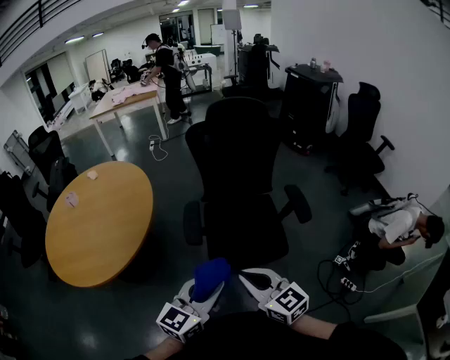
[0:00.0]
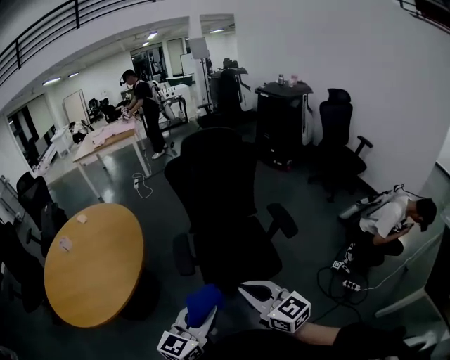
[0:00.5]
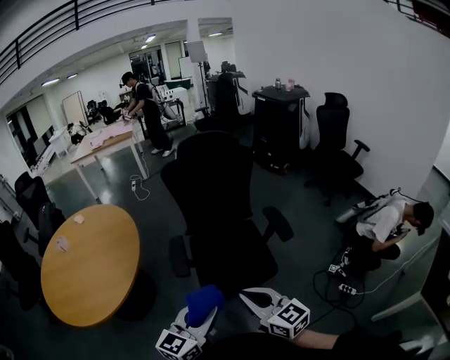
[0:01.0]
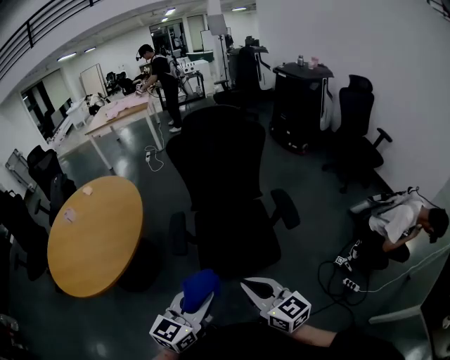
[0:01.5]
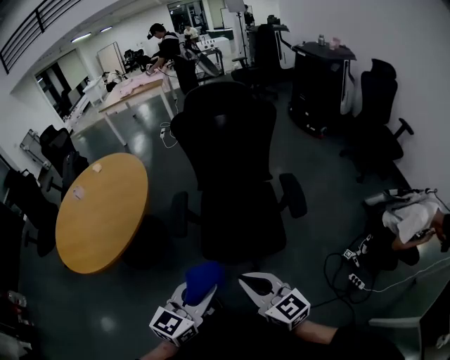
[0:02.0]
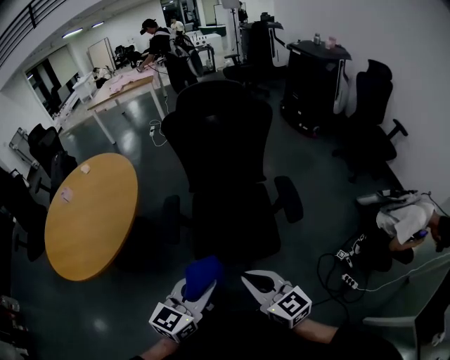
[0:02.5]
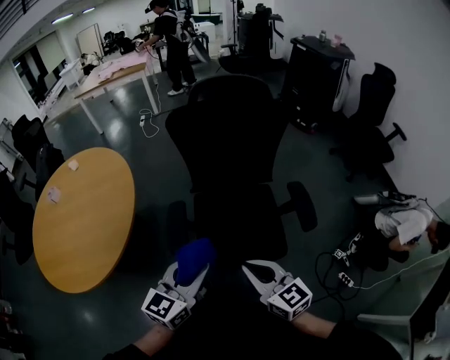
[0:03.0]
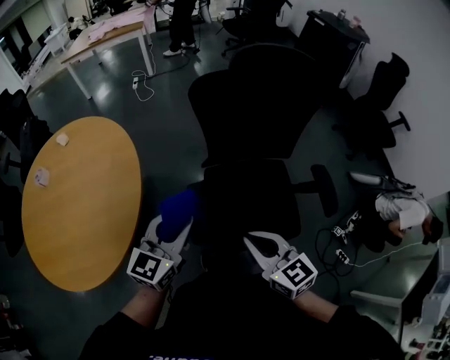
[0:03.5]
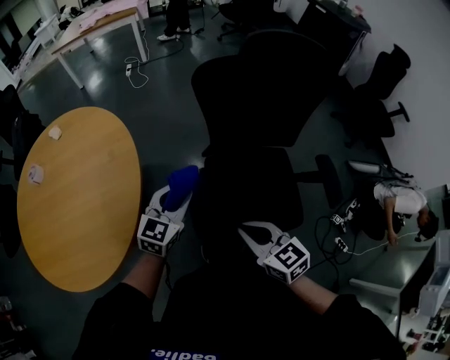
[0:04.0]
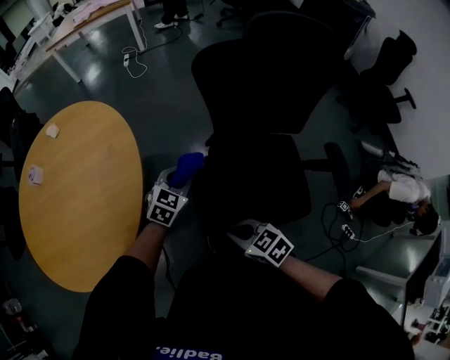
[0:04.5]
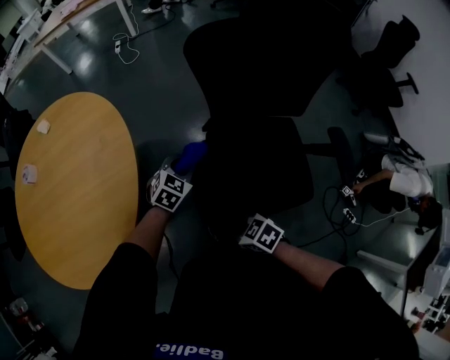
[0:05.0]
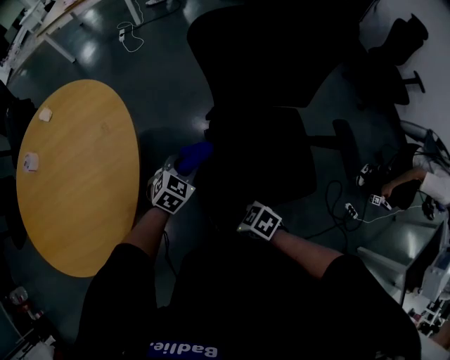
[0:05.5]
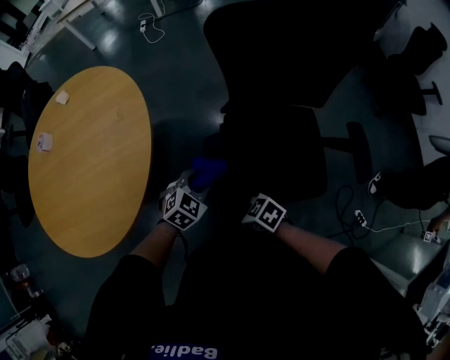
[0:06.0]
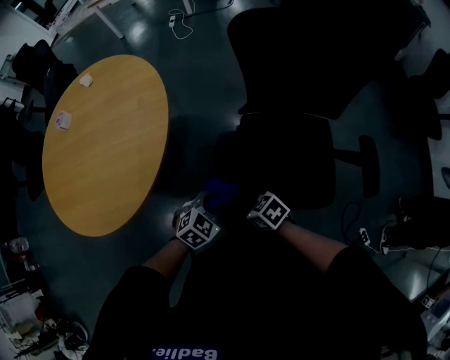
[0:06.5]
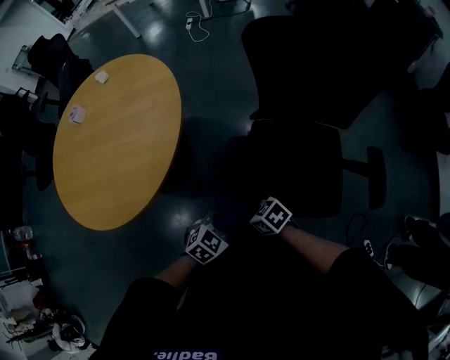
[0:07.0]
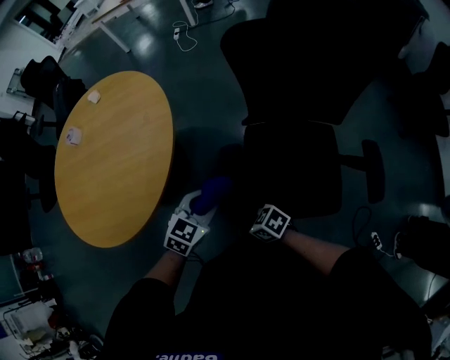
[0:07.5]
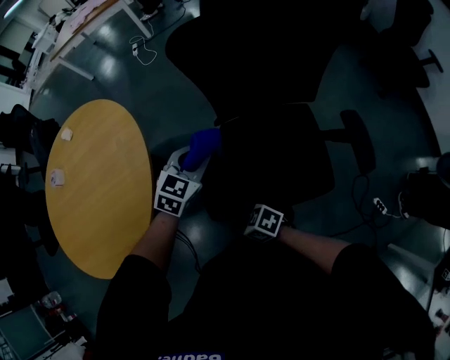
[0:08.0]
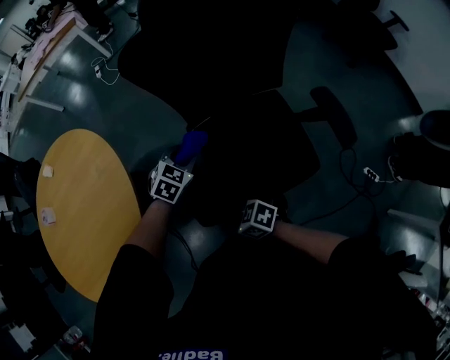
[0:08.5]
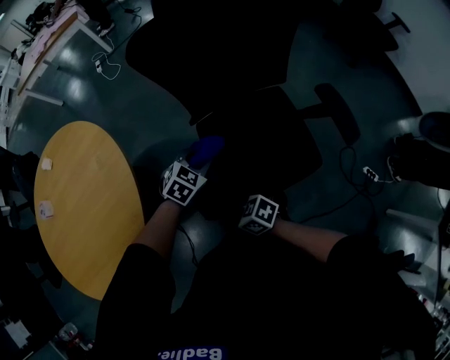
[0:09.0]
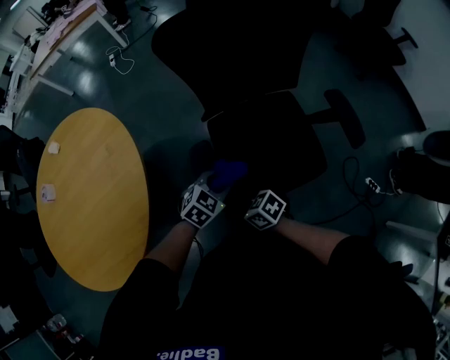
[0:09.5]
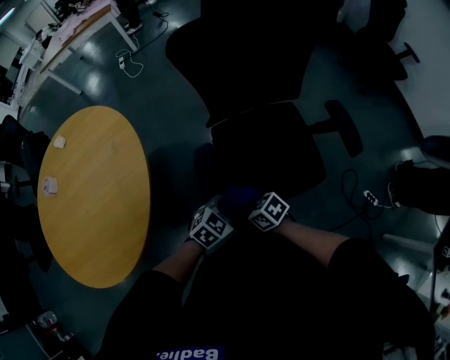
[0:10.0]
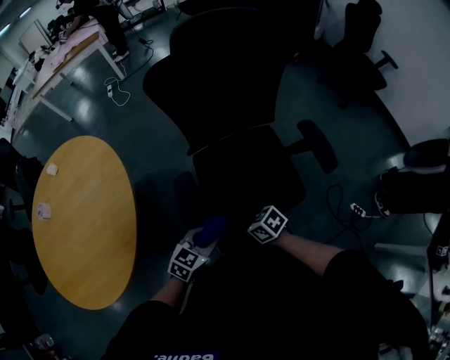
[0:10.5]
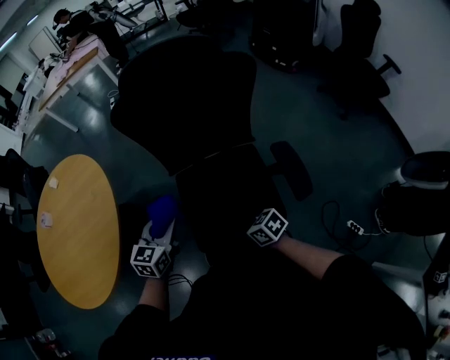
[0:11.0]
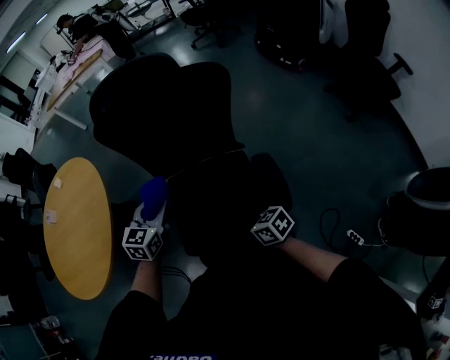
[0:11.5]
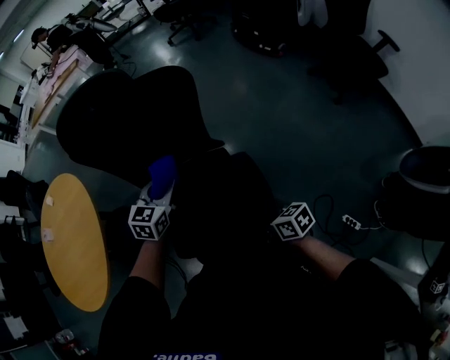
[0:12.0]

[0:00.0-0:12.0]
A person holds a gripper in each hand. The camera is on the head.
0:00.0 to 0:02.0: Both grippers move to the right, some 10 cm.
0:02.0 to 0:04.0: Both grippers travel together forward and to the left, approximately 40 cm. The right gripper rotates some 20 degrees.
0:04.0 to 0:06.0: The two grippers go roughly 15 cm downward. The left gripper turns by some 30 degrees, while the right gripper swivels roughly 40 degrees.
0:06.0 to 0:08.0: The left gripper shifts by roughly 15 cm.
0:08.0 to 0:10.0: The left gripper moves roughly 25 cm, and changes its angle by some 30 degrees.
0:10.0 to 0:12.0: The right gripper changes place by about 50 cm, and changes its angle by approximately 20 degrees. The left gripper ends up approximately 40 cm from where it was, and changes its angle by about 40 degrees.

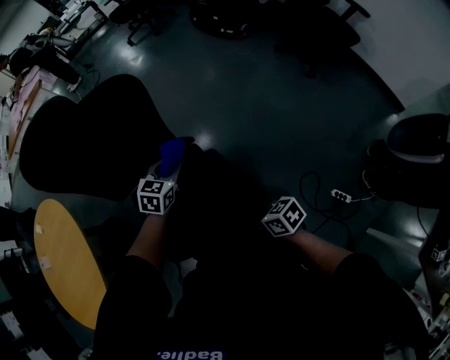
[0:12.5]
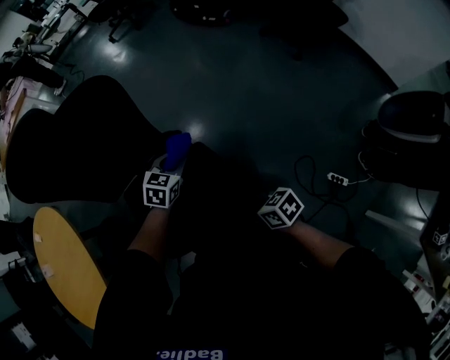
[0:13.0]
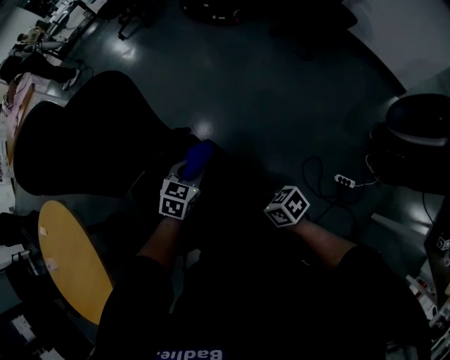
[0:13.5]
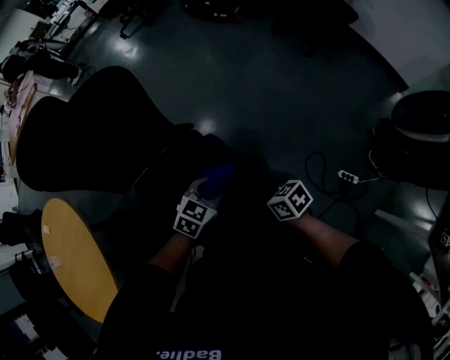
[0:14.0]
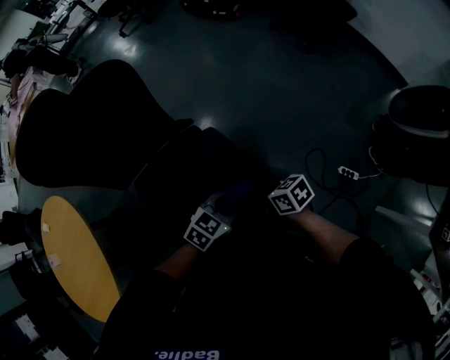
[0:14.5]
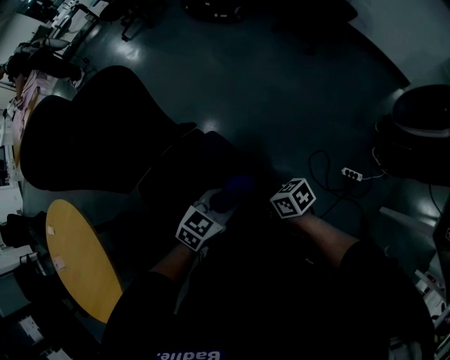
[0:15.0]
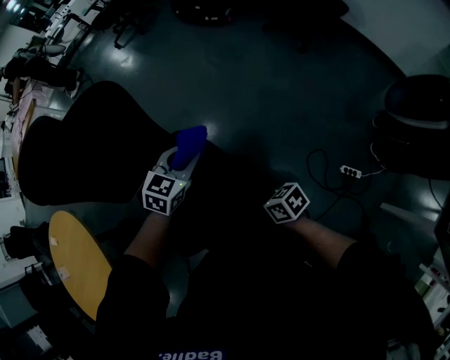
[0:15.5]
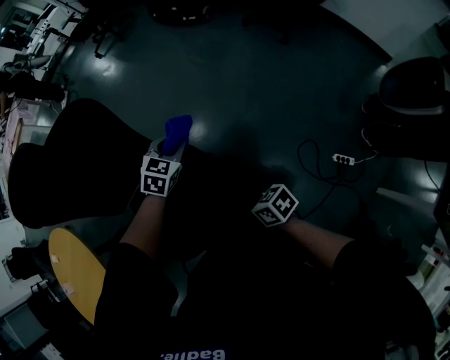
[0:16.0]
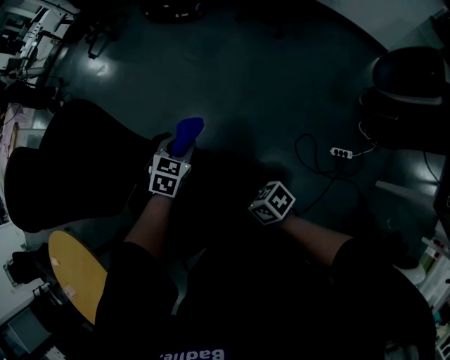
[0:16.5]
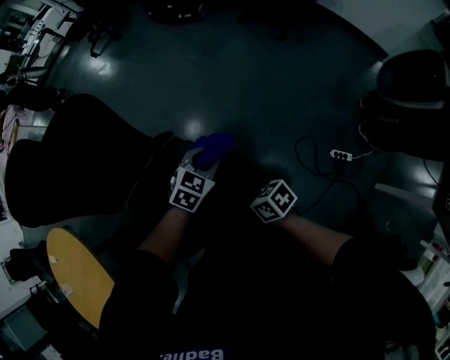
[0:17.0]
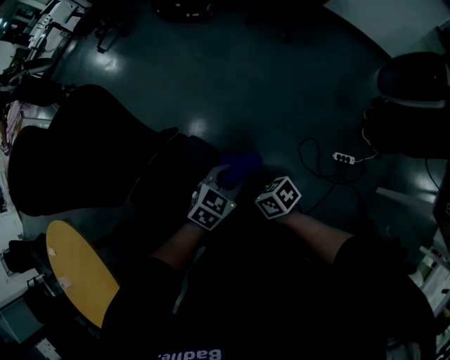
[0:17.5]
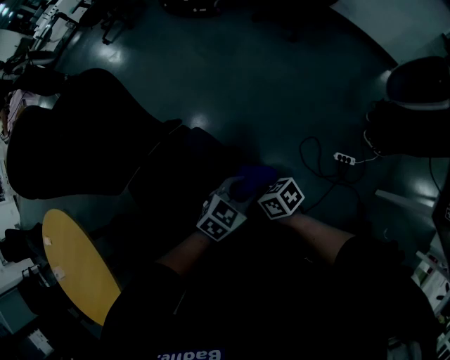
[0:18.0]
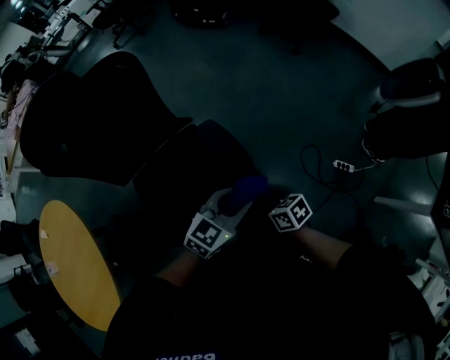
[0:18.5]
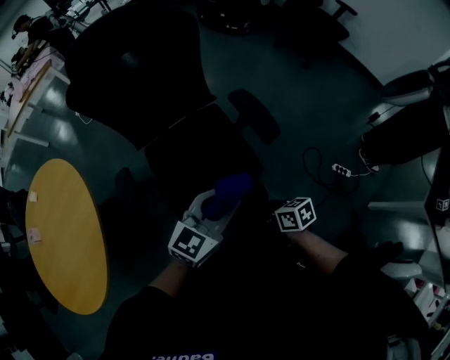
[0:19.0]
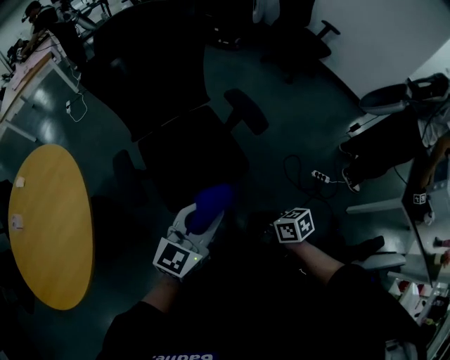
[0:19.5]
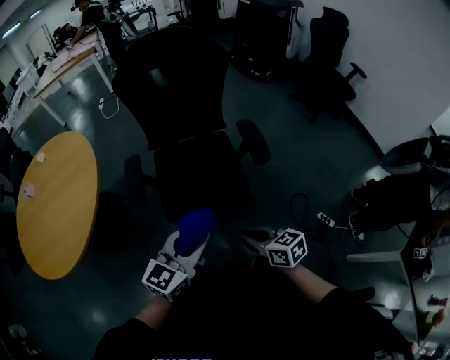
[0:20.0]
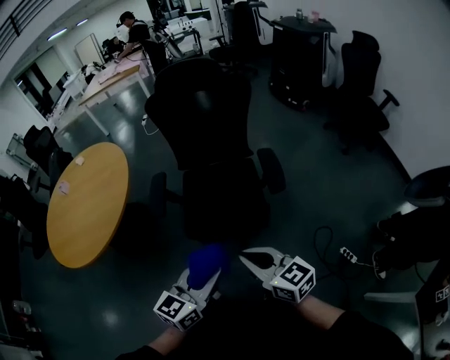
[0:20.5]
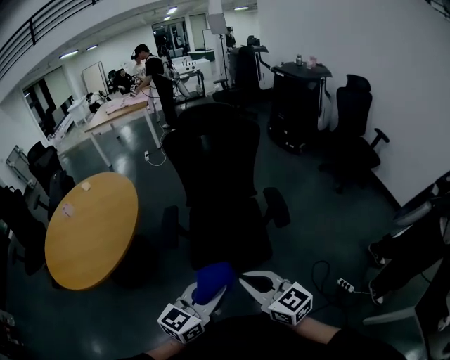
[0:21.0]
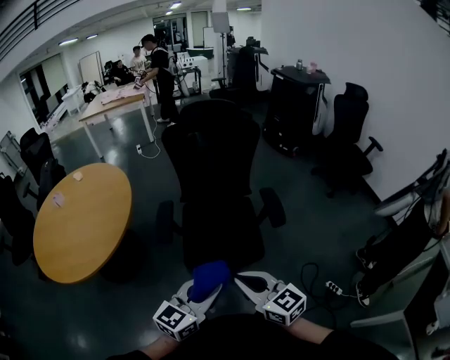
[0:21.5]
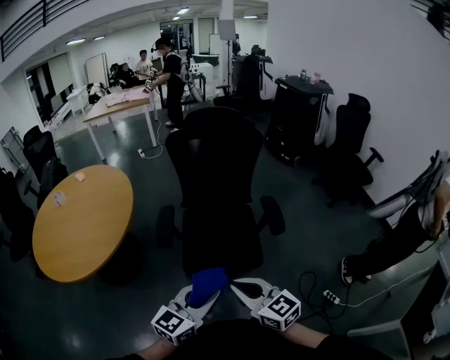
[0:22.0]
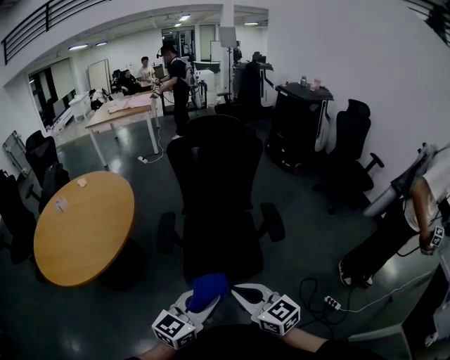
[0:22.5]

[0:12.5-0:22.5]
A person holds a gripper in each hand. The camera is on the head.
0:12.5 to 0:14.5: The left gripper shifts by some 30 cm, and turns by approximately 30 degrees.
0:14.5 to 0:16.5: The left gripper moves approximately 5 cm upward and comes back, and changes its angle by about 20 degrees.
0:16.5 to 0:18.5: The left gripper moves some 30 cm, and turns by approximately 30 degrees, while the right gripper moves roughly 10 cm.
0:18.5 to 0:20.5: The left gripper shifts by roughly 35 cm, and swivels approximately 50 degrees, while the right gripper travels upward by roughly 30 cm, and turns by about 50 degrees.
0:20.5 to 0:22.5: The grippers both shift to the left by roughly 5 cm.

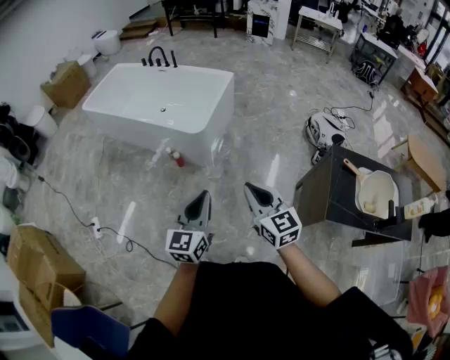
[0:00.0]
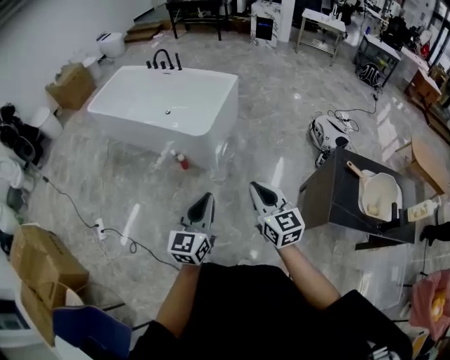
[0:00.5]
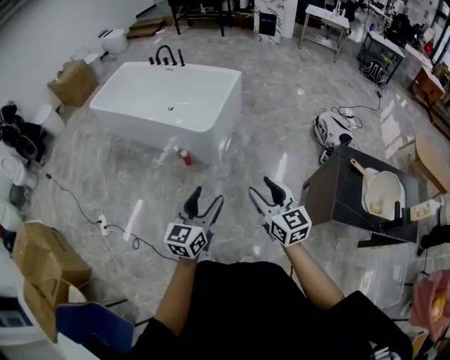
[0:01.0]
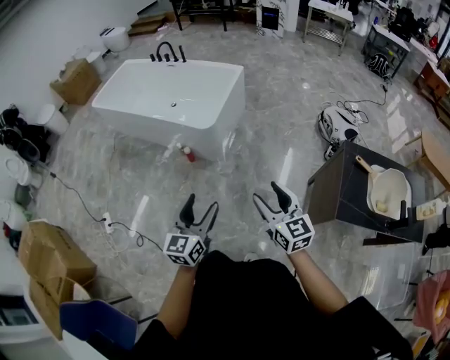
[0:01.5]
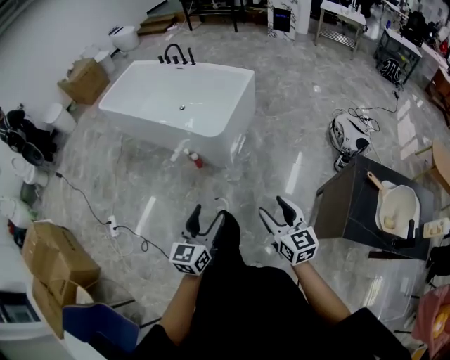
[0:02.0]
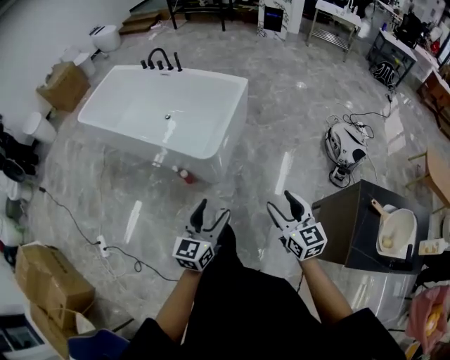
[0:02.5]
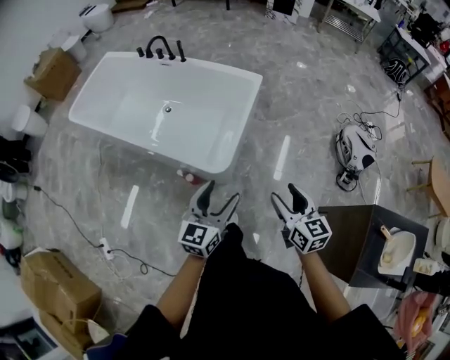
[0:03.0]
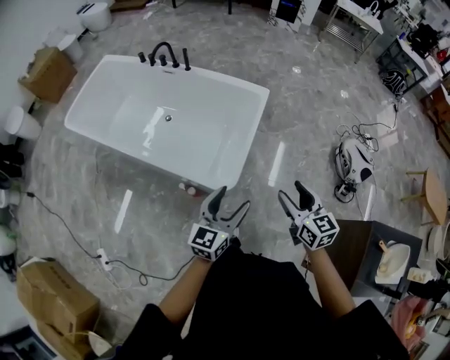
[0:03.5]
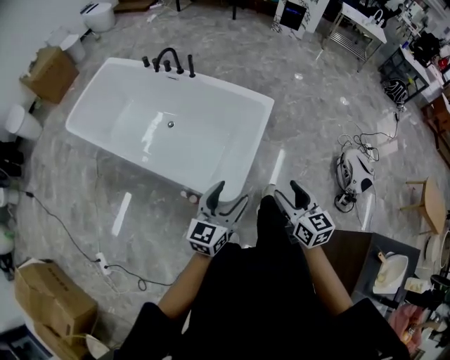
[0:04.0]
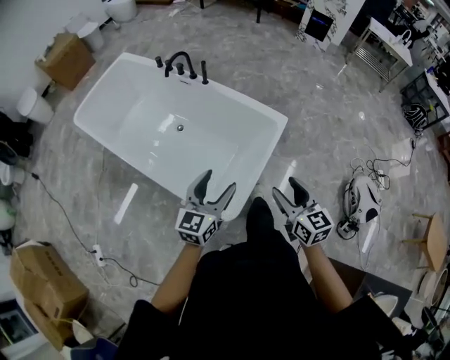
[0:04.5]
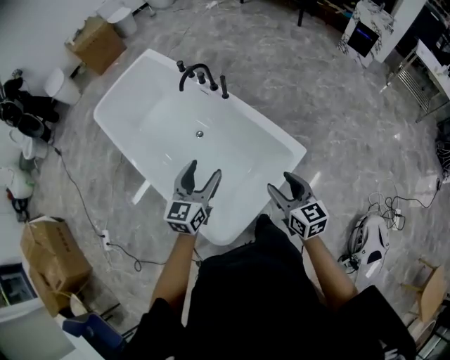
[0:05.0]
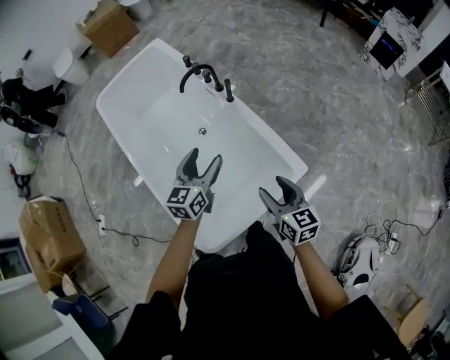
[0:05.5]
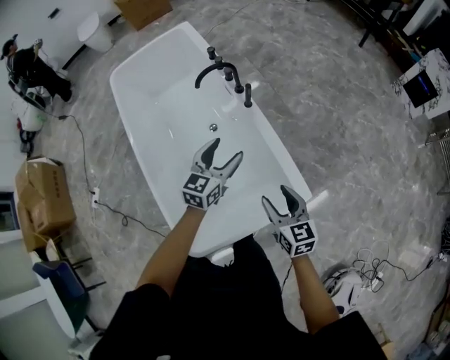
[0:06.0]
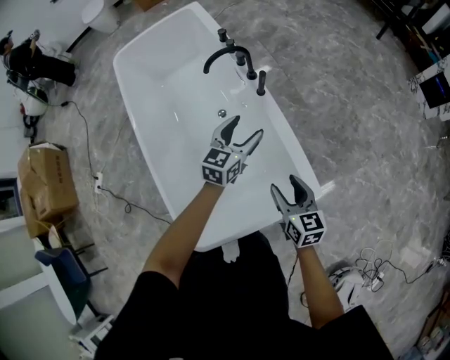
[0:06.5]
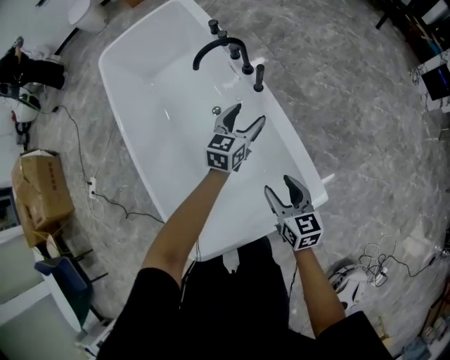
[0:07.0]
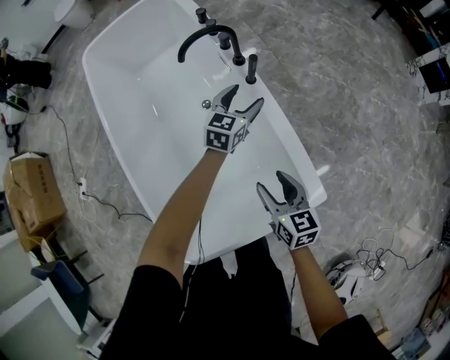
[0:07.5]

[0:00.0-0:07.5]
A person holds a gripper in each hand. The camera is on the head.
0:00.0 to 0:02.0: The grippers both shift downward by roughly 5 cm. The right gripper opens up. The left gripper opens up.
0:02.0 to 0:04.0: The two grippers travel together, forward, about 60 cm.
0:04.0 to 0:05.5: Both grippers are carried about 50 cm. The left gripper turns by about 40 degrees. Meanwhile the right gripper turns by roughly 30 degrees.
0:05.5 to 0:07.5: The right gripper shifts about 25 cm downward and forward, while the left gripper shifts some 40 cm forward and downward.
